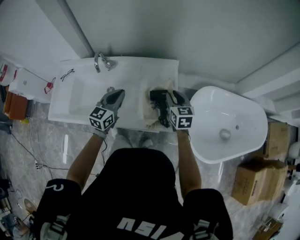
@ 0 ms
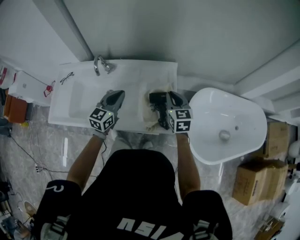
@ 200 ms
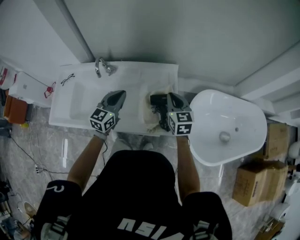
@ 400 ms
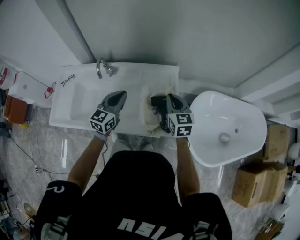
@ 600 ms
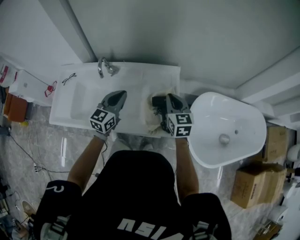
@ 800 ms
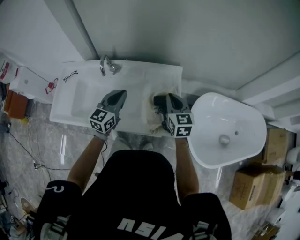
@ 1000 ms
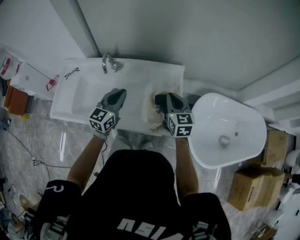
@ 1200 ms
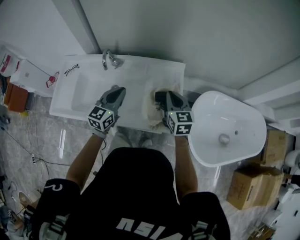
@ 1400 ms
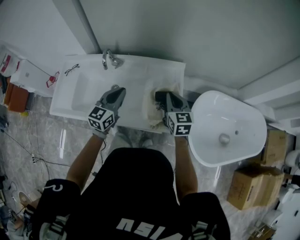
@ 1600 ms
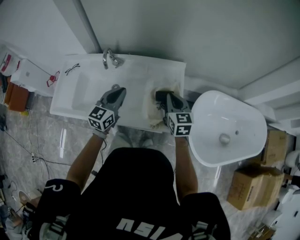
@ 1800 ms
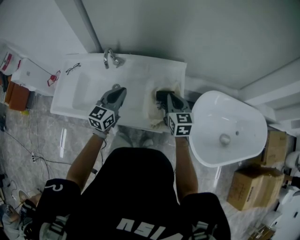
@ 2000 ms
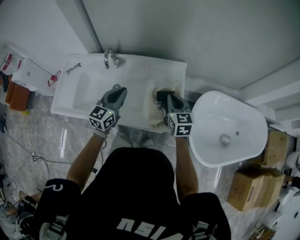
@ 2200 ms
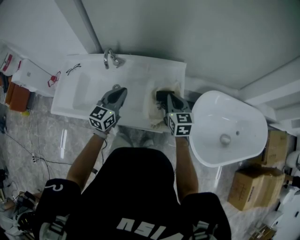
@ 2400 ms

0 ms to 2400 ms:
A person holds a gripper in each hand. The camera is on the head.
0 ms to 1200 ms: The right gripper goes approximately 5 cm upward.
1200 ms to 2400 ms: There are only small adjustments of the grippers.

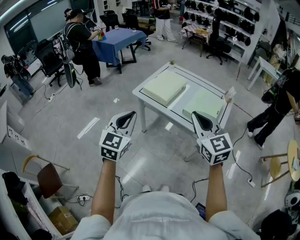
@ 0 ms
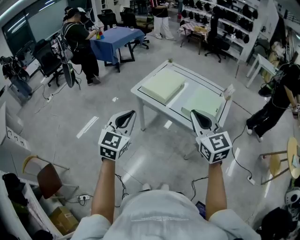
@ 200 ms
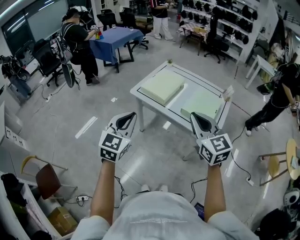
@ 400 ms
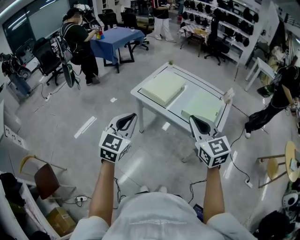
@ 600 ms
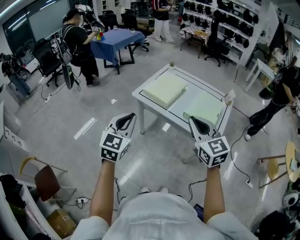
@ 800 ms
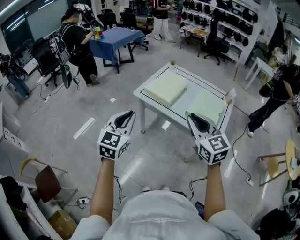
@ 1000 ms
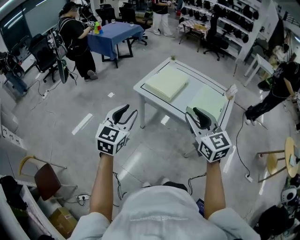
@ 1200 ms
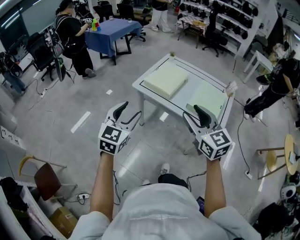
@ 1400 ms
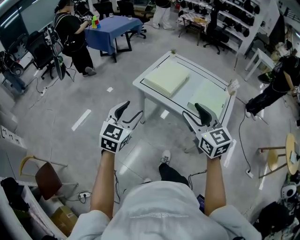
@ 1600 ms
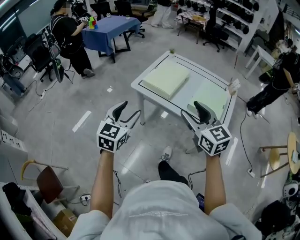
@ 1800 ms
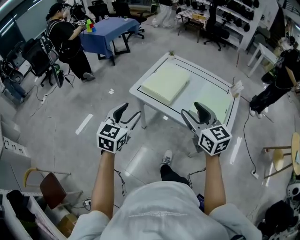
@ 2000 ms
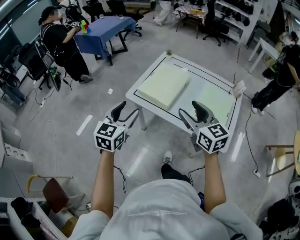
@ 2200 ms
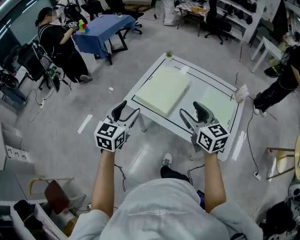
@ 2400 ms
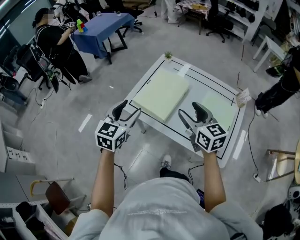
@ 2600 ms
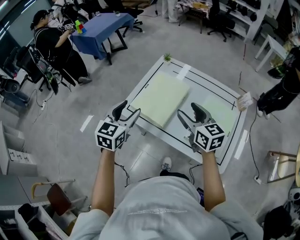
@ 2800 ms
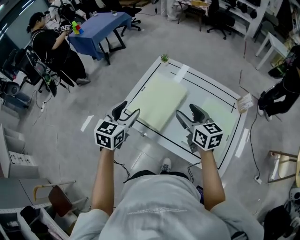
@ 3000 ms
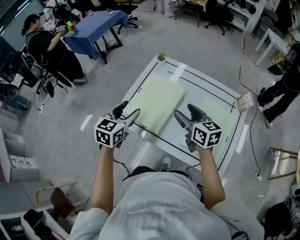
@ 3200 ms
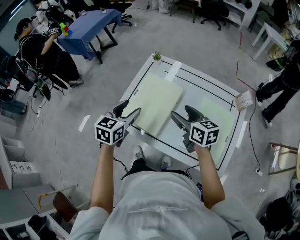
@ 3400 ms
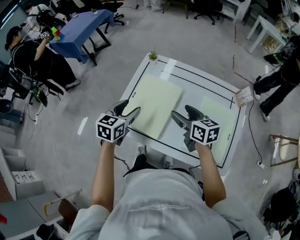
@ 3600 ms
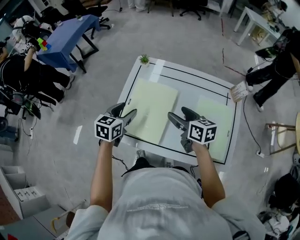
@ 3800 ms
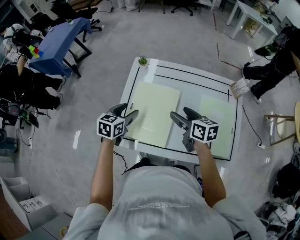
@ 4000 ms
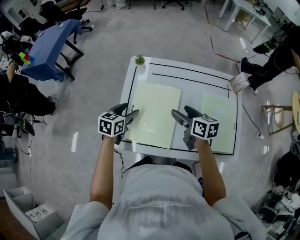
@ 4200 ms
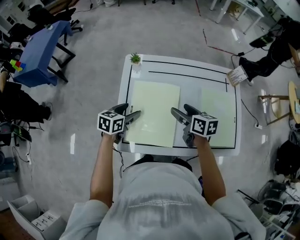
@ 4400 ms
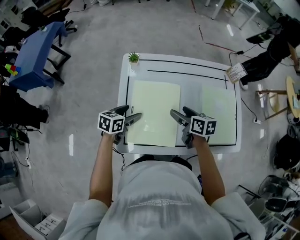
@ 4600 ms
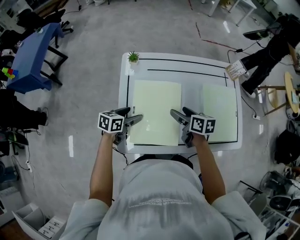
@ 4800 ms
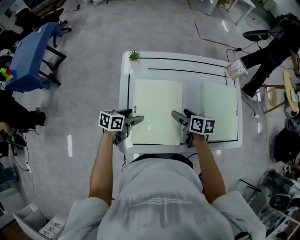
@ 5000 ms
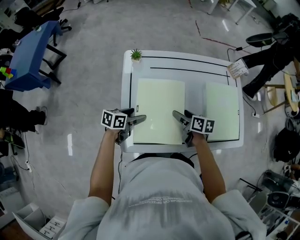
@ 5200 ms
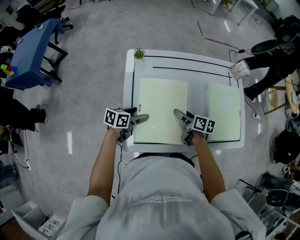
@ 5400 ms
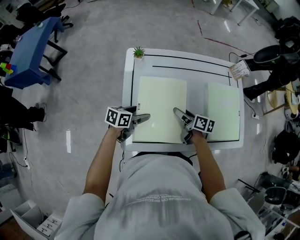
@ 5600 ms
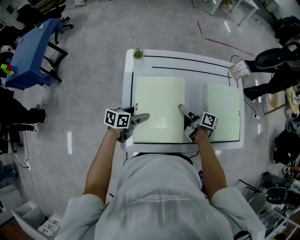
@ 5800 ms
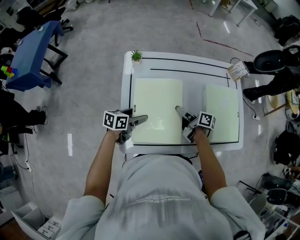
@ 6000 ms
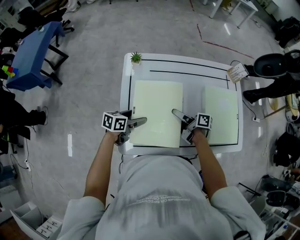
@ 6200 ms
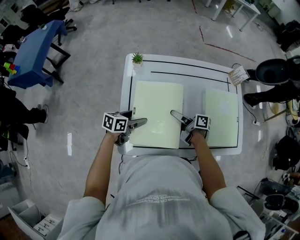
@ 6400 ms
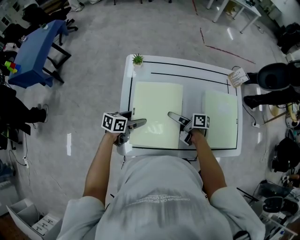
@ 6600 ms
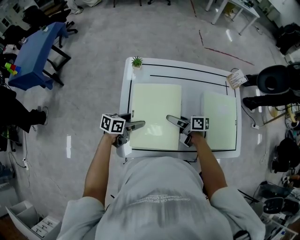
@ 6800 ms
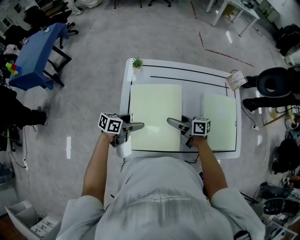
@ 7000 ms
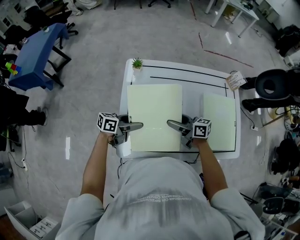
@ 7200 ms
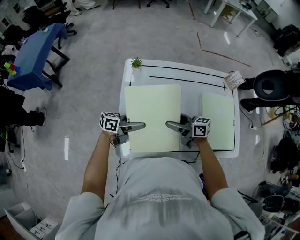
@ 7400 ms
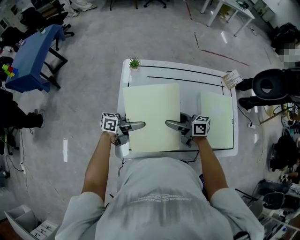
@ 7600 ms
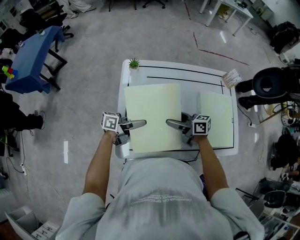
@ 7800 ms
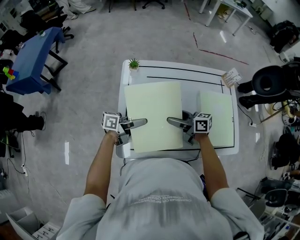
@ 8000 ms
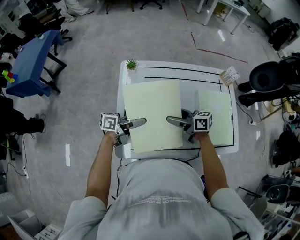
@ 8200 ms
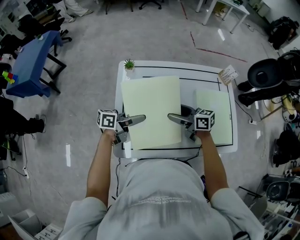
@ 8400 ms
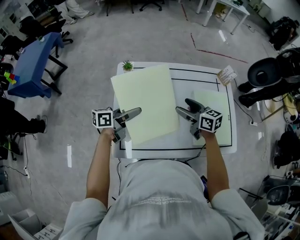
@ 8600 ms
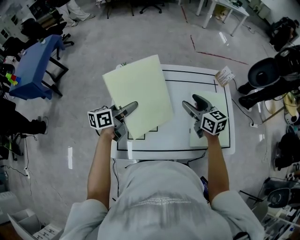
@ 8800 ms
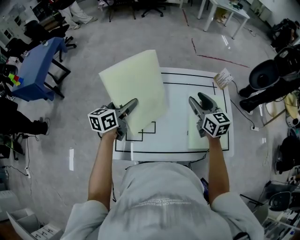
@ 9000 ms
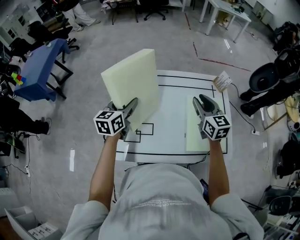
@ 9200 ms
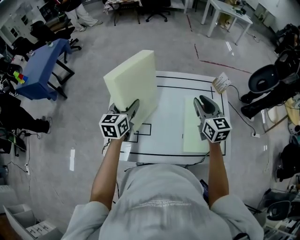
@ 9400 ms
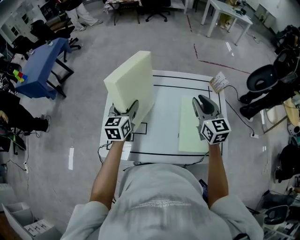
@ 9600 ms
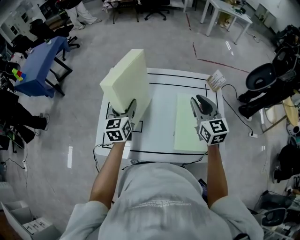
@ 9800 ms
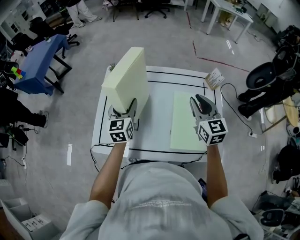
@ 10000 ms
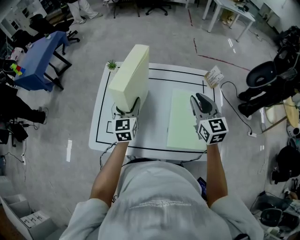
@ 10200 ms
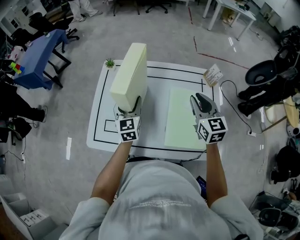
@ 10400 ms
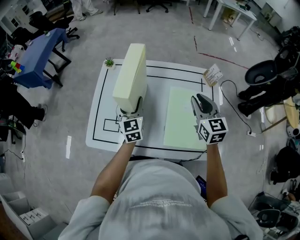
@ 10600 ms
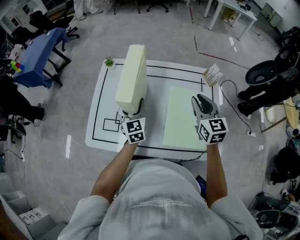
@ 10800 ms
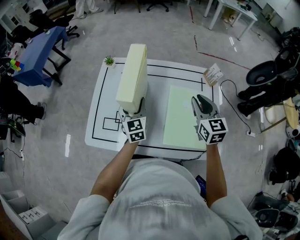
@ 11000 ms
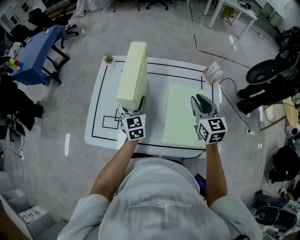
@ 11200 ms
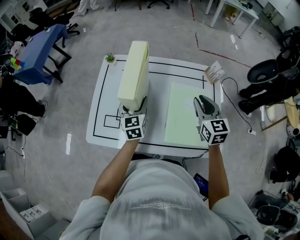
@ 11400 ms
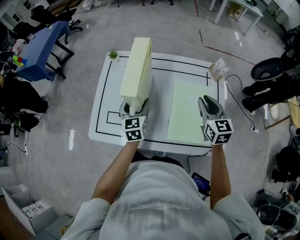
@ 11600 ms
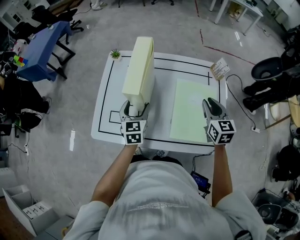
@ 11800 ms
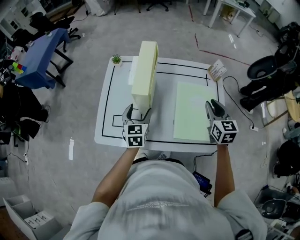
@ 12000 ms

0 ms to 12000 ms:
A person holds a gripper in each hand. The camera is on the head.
0 ms to 1600 ms: The left gripper travels downward and forward by about 10 cm, and opens. Meanwhile the right gripper is displaced to the left and downward by about 10 cm, and opens its fingers.
1600 ms to 3000 ms: The two grippers go roughly 35 cm forward. The right gripper rotates approximately 20 degrees.
3000 ms to 4400 ms: The left gripper shifts by roughly 25 cm, and changes its angle by approximately 40 degrees. The right gripper moves downward, roughly 10 cm, and changes its angle by about 40 degrees.
4400 ms to 6000 ms: The two grippers go approximately 10 cm downward. The right gripper changes its angle by approximately 40 degrees.
6000 ms to 7600 ms: The grippers both shift upward by about 5 cm. The right gripper swivels some 40 degrees; the left gripper tilts its fingers some 30 degrees upward.
7600 ms to 9000 ms: The right gripper moves about 25 cm, rotates roughly 50 degrees, and closes its fingers; the left gripper moves upward, some 15 cm, and turns by approximately 40 degrees.
9000 ms to 10400 ms: Both grippers travel together to the right, about 10 cm. The left gripper rotates about 50 degrees.
10400 ms to 12000 ms: The grippers both shift backward by about 5 cm.

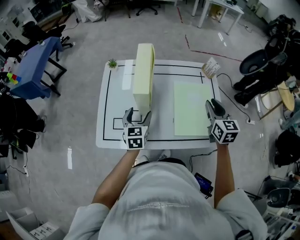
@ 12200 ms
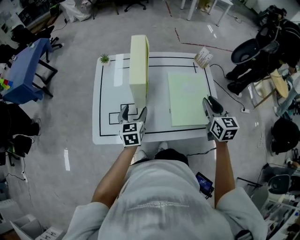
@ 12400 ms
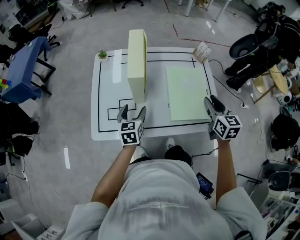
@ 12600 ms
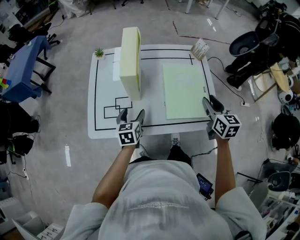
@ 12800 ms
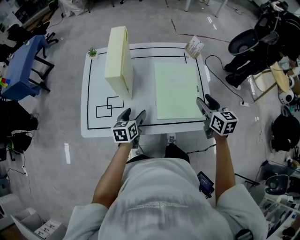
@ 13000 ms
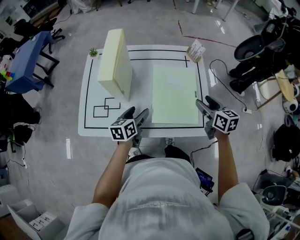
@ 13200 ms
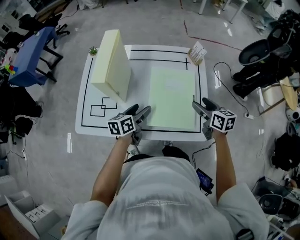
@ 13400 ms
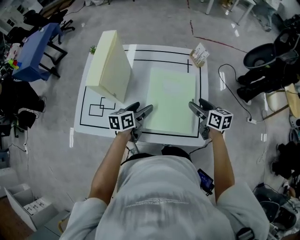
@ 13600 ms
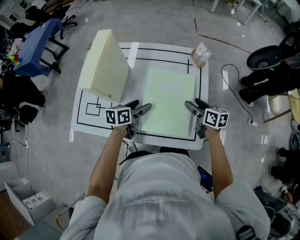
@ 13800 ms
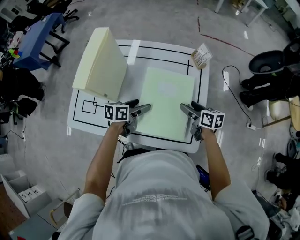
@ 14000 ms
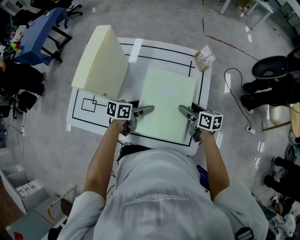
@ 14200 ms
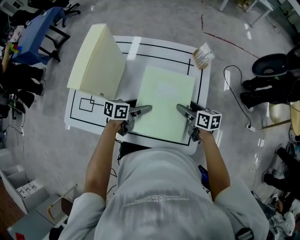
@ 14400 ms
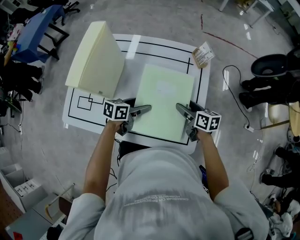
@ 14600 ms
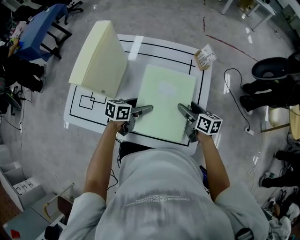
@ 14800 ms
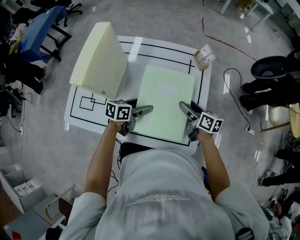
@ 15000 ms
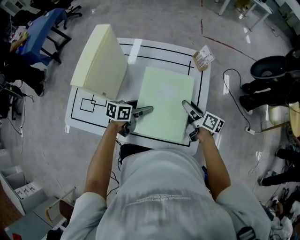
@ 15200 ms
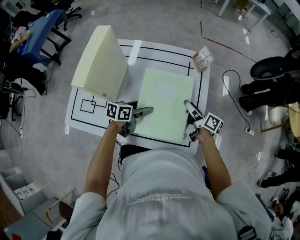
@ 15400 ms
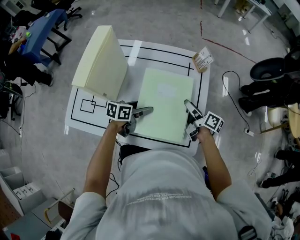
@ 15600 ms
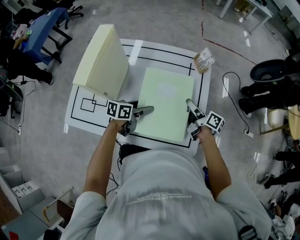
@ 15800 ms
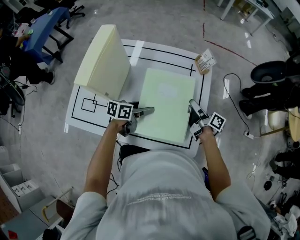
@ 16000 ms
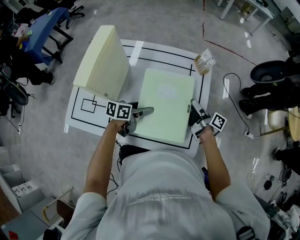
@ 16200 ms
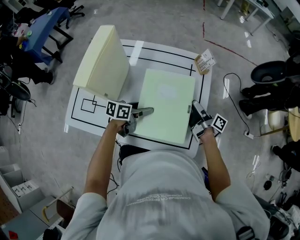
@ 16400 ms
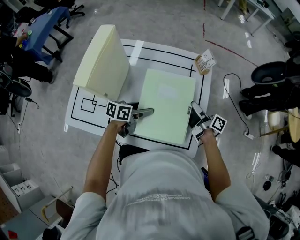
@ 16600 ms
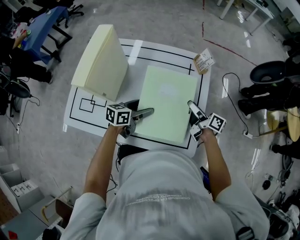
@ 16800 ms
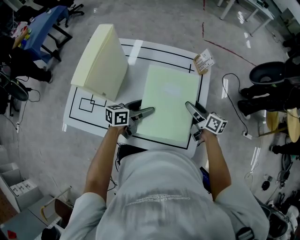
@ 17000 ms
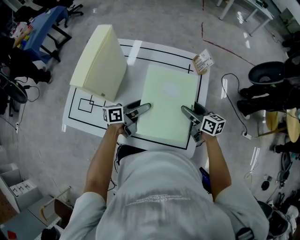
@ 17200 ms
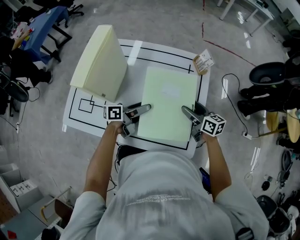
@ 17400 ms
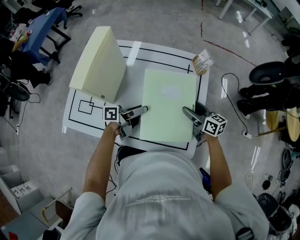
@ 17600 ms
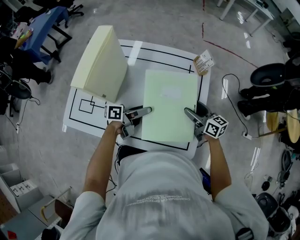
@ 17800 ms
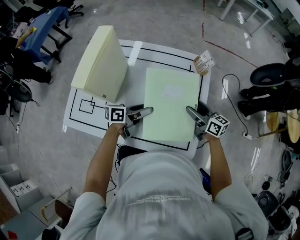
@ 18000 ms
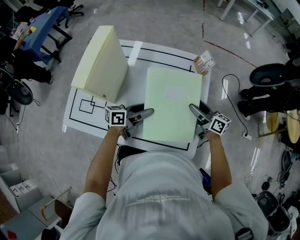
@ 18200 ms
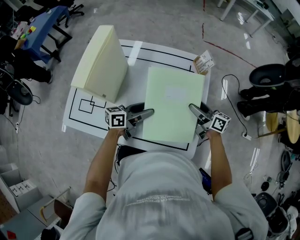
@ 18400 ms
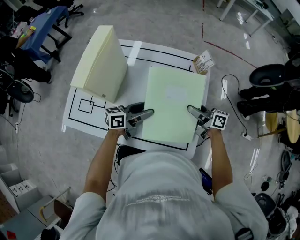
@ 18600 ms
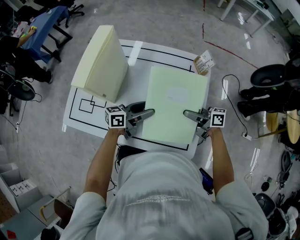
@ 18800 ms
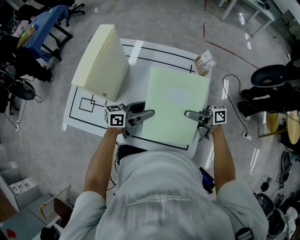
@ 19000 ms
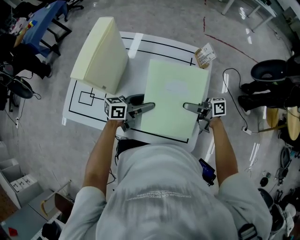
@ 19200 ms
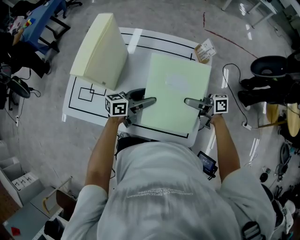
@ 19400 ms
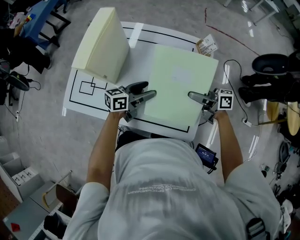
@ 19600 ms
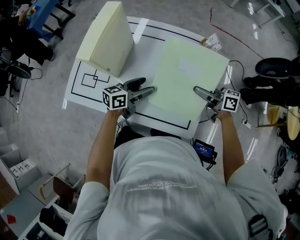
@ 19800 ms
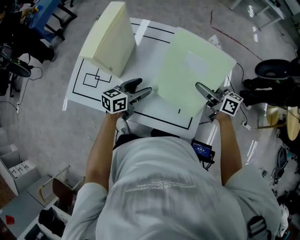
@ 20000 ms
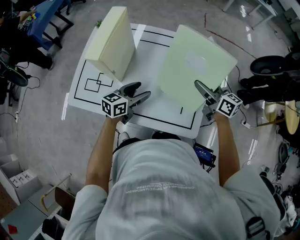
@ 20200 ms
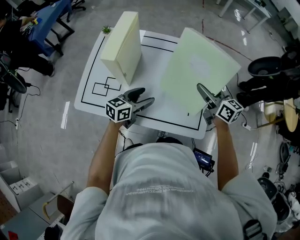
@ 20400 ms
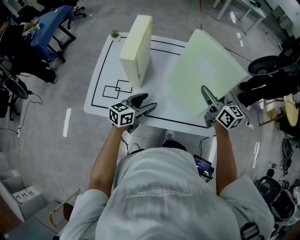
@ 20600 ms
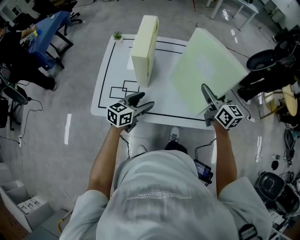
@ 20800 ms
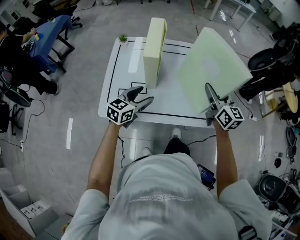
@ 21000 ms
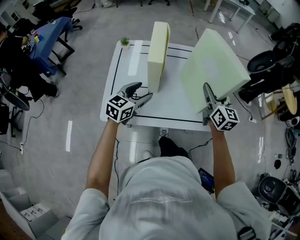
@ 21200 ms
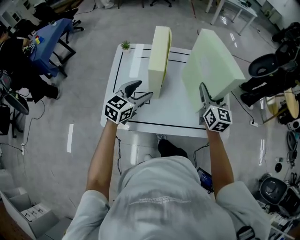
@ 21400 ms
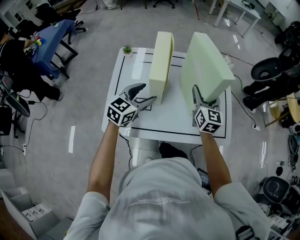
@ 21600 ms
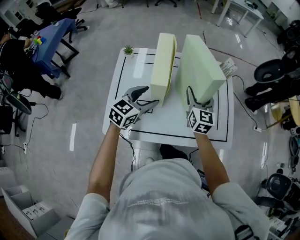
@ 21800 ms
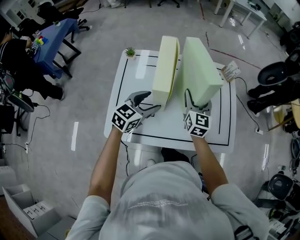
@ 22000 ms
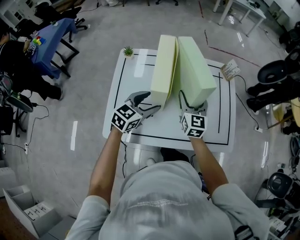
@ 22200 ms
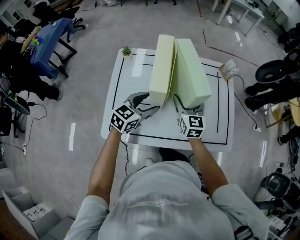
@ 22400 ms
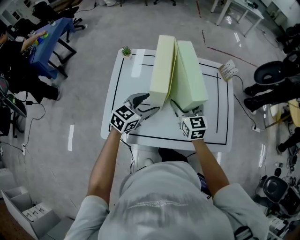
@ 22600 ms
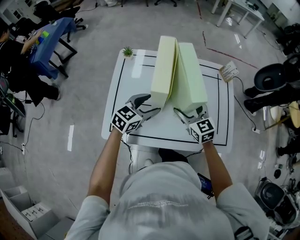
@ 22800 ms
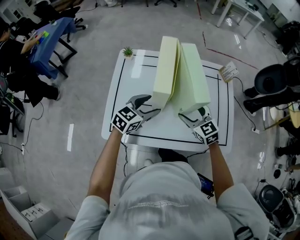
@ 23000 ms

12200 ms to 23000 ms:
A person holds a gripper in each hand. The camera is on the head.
12200 ms to 13800 ms: The left gripper is displaced to the right by approximately 20 cm, and turns by some 40 degrees. Meanwhile the right gripper heads downward and to the right, covering some 20 cm, rotates roughly 40 degrees, and opens up.
13800 ms to 15200 ms: The right gripper swivels roughly 20 degrees.
16800 ms to 18400 ms: The right gripper turns by approximately 20 degrees.
18400 ms to 20000 ms: The right gripper shifts about 10 cm upward, while the left gripper changes place by roughly 5 cm.
20000 ms to 21400 ms: The left gripper ends up roughly 25 cm from where it was, and turns by about 30 degrees. The right gripper changes place by some 20 cm, and turns by roughly 60 degrees.
21400 ms to 23000 ms: The right gripper shifts about 15 cm downward and to the left, and swivels about 40 degrees; the left gripper goes about 5 cm downward.
